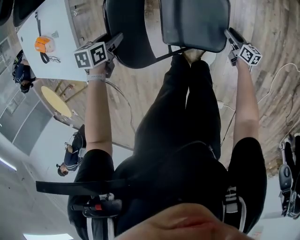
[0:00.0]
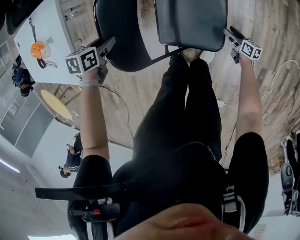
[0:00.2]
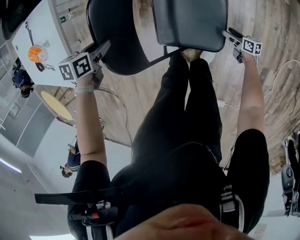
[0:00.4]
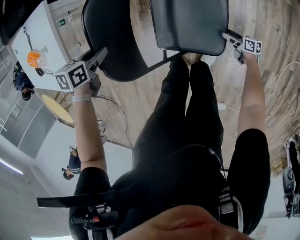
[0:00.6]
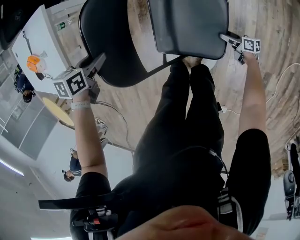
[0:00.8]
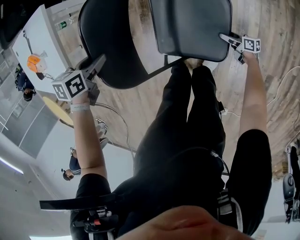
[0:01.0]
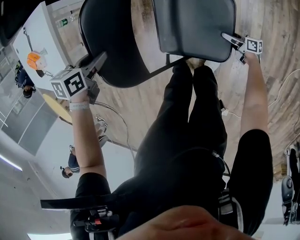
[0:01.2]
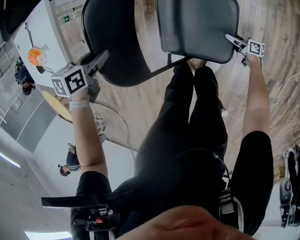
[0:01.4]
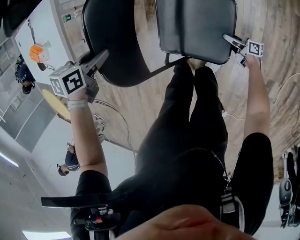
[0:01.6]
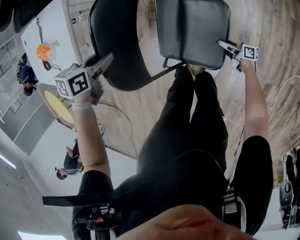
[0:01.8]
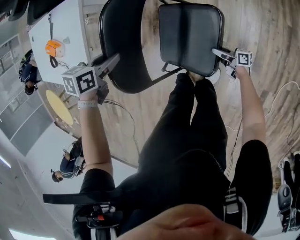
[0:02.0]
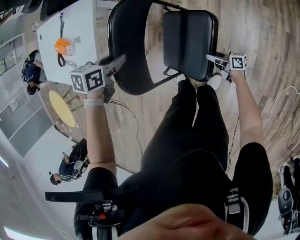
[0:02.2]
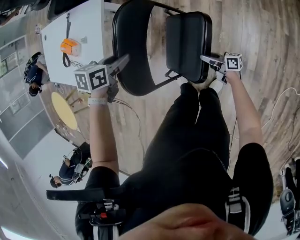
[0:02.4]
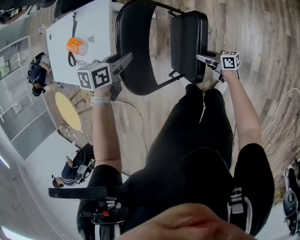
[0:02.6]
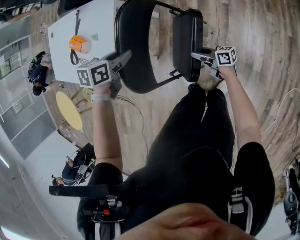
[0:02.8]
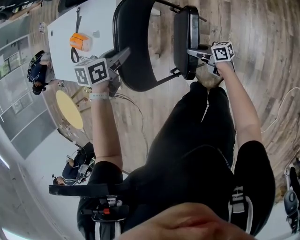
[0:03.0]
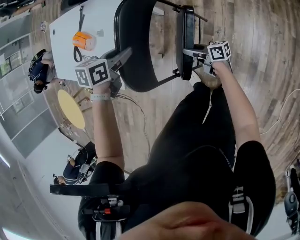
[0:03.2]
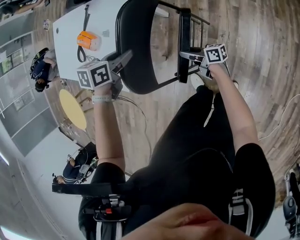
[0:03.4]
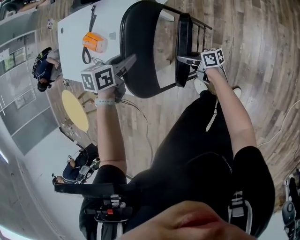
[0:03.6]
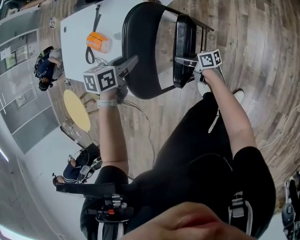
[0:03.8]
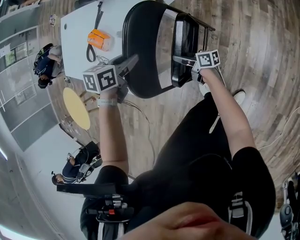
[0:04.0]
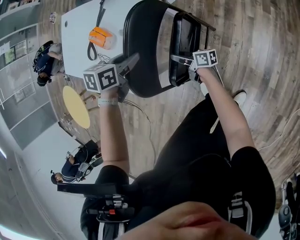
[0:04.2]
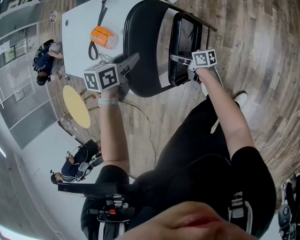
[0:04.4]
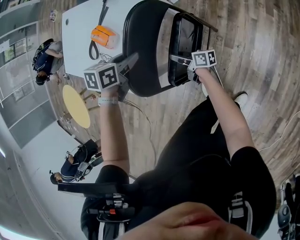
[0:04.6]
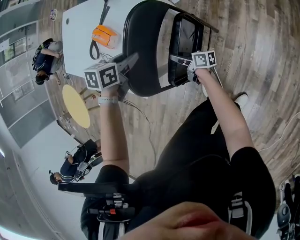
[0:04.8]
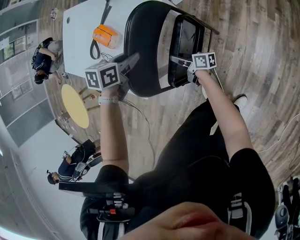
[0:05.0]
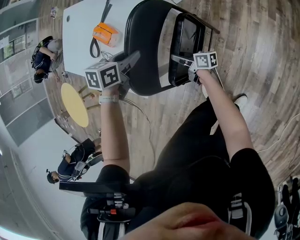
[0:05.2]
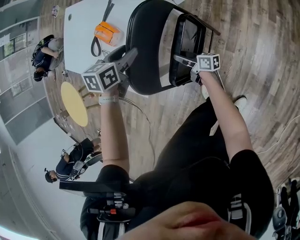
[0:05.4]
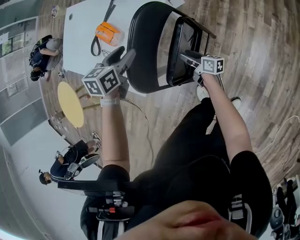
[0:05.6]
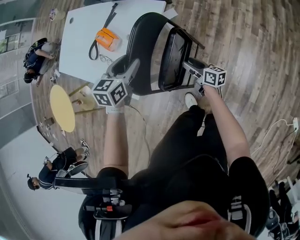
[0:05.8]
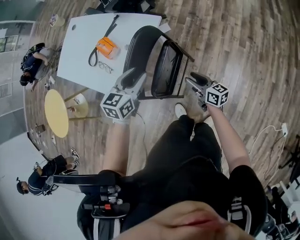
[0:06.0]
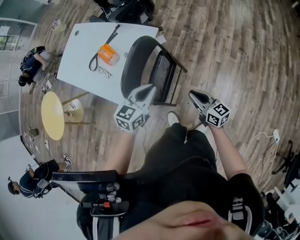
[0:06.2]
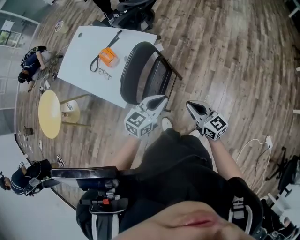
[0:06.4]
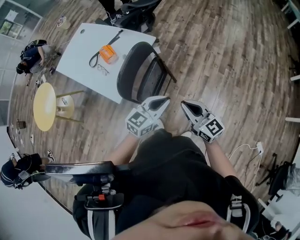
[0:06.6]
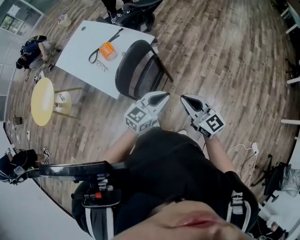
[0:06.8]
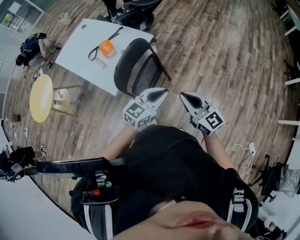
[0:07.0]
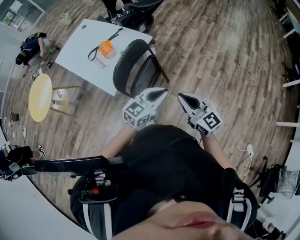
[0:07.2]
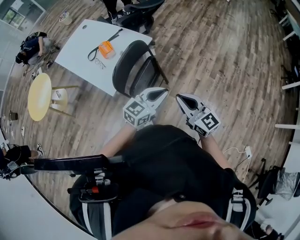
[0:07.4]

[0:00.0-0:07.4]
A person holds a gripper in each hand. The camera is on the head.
0:00.0 to 0:01.4: The right gripper travels downward by approximately 15 cm, rotates some 30 degrees, and opens its fingers.
0:01.4 to 0:03.0: The right gripper shifts by roughly 40 cm, rotates about 30 degrees, and closes up; the left gripper is displaced upward by about 15 cm.
0:03.0 to 0:04.4: The left gripper travels to the left and forward by approximately 15 cm, while the right gripper shifts approximately 25 cm to the left and forward.
0:04.4 to 0:06.0: The left gripper is displaced upward and backward by about 15 cm, and changes its angle by roughly 30 degrees. Meanwhile the right gripper moves upward, to the right and backward, approximately 25 cm, and changes its angle by some 40 degrees.
0:06.0 to 0:07.4: The left gripper shifts about 30 cm to the right, backward and upward, changes its angle by approximately 30 degrees, and closes, while the right gripper moves upward and backward, about 35 cm, changes its angle by approximately 40 degrees, and closes.

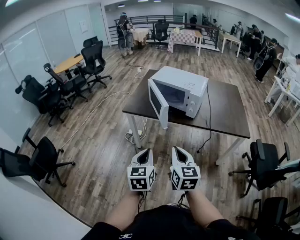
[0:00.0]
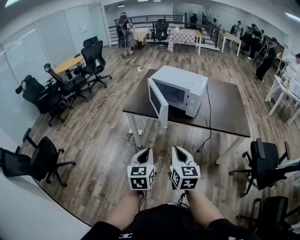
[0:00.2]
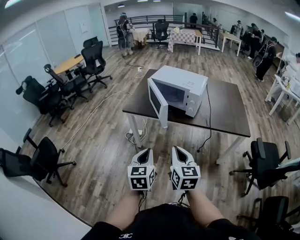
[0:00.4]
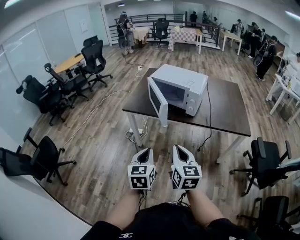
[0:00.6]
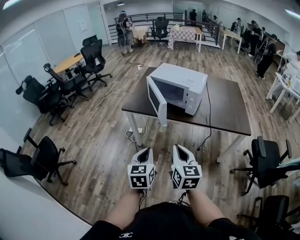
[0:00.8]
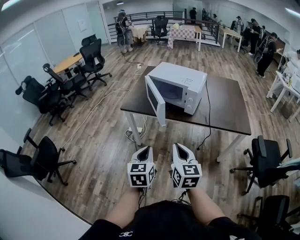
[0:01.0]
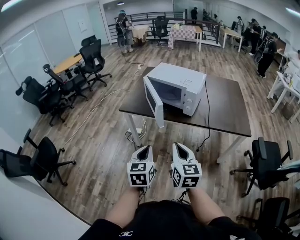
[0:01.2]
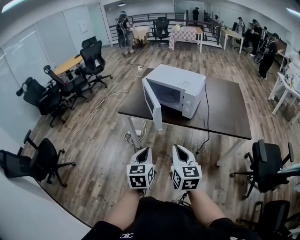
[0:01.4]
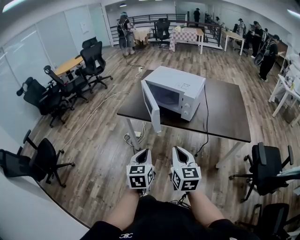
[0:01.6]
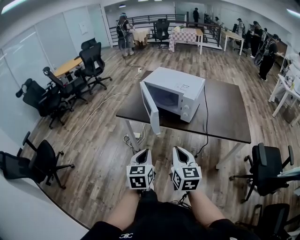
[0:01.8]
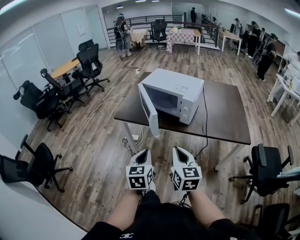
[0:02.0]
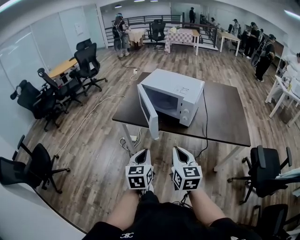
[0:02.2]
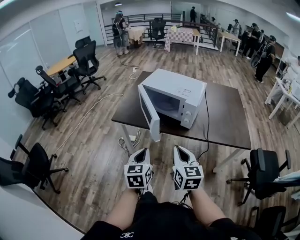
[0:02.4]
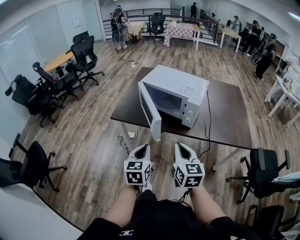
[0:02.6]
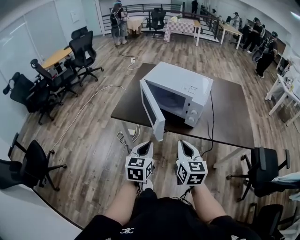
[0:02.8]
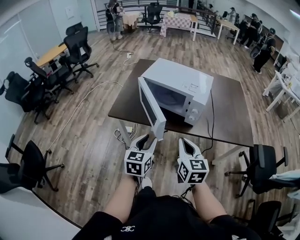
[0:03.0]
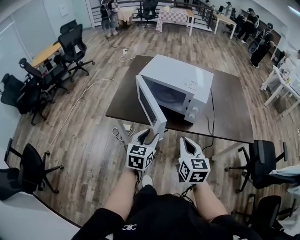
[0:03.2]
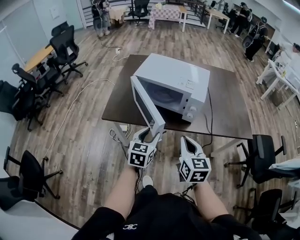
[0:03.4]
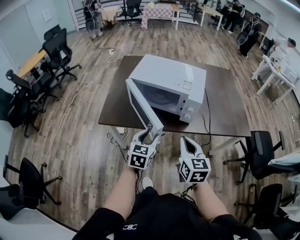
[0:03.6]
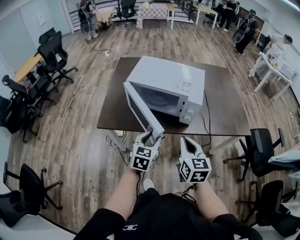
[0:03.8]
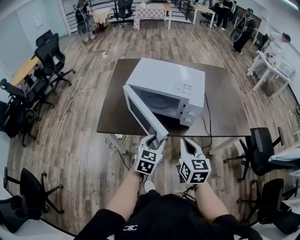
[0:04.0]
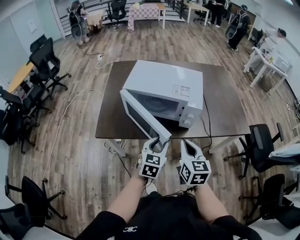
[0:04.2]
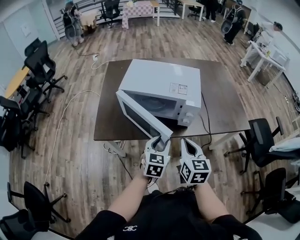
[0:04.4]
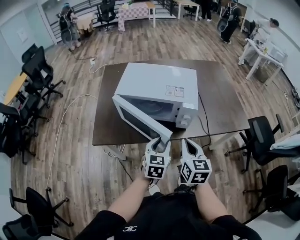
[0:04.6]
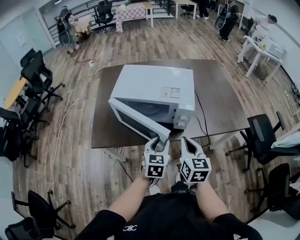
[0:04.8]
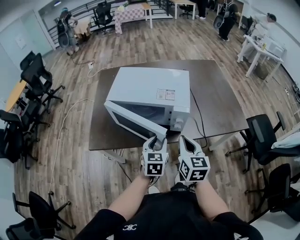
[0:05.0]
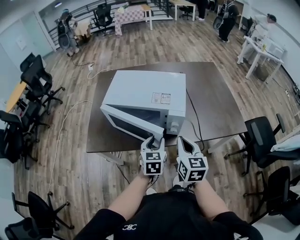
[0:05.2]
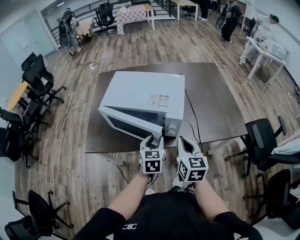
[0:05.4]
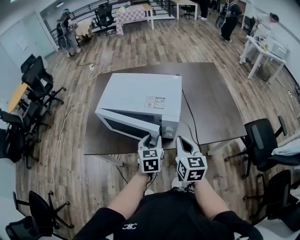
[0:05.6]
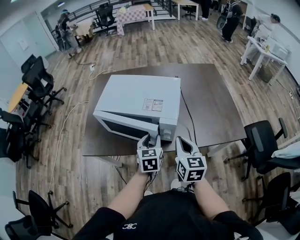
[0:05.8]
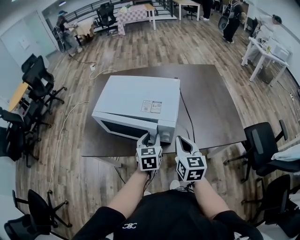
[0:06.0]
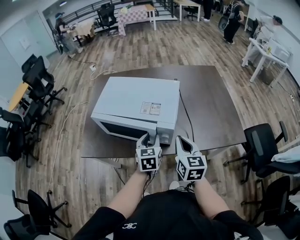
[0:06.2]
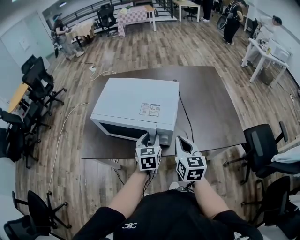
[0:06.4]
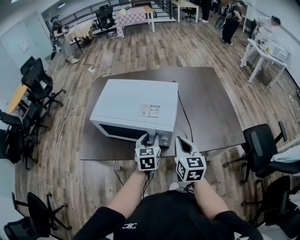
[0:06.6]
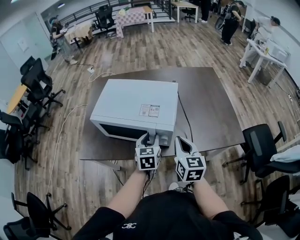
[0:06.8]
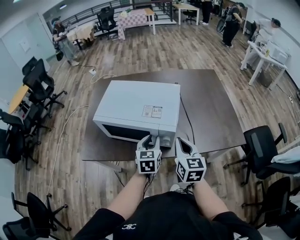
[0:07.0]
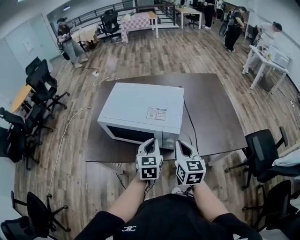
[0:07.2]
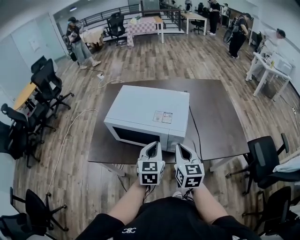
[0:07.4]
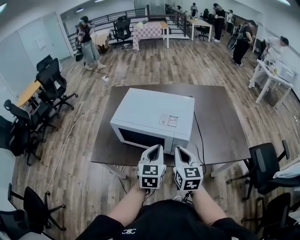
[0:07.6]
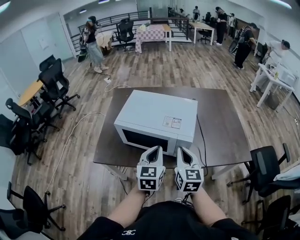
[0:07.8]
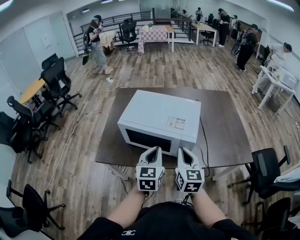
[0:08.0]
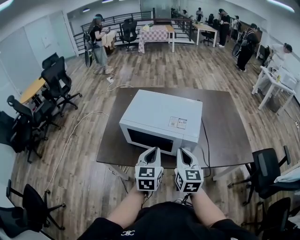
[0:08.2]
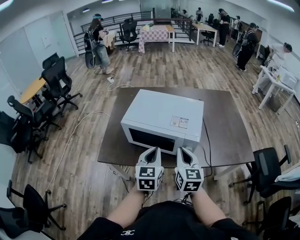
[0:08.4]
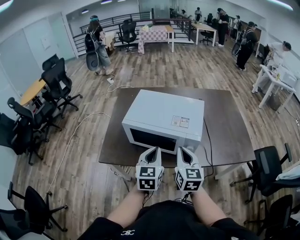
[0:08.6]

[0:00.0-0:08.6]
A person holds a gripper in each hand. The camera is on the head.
0:00.0 to 0:01.4: The grippers both shift to the right by some 5 cm.
0:01.4 to 0:02.8: Both grippers move forward, roughly 15 cm.
0:02.8 to 0:04.4: Both grippers travel together forward, approximately 15 cm. The left gripper changes its angle by approximately 30 degrees, and opens.
0:04.4 to 0:05.8: The right gripper shifts approximately 15 cm to the right and forward. The left gripper heads forward and to the right, covering approximately 15 cm.
0:05.8 to 0:07.2: The left gripper closes.
0:07.2 to 0:08.6: Both grippers travel together to the left, some 10 cm.

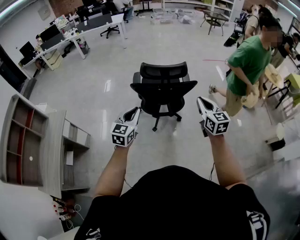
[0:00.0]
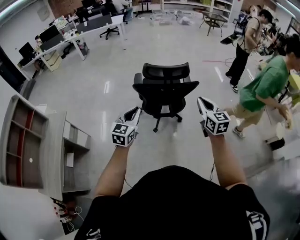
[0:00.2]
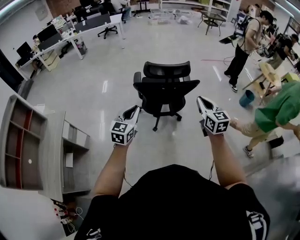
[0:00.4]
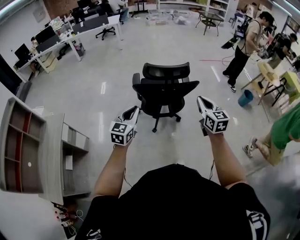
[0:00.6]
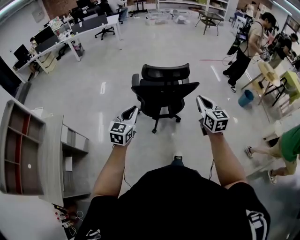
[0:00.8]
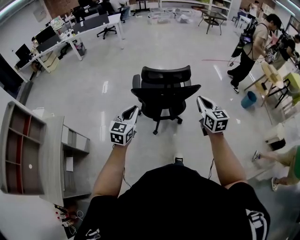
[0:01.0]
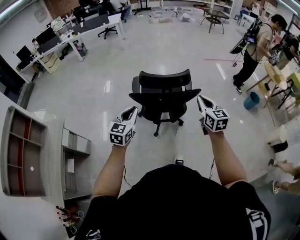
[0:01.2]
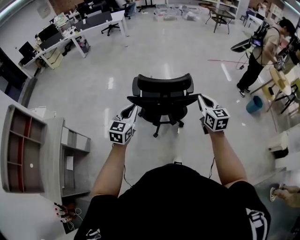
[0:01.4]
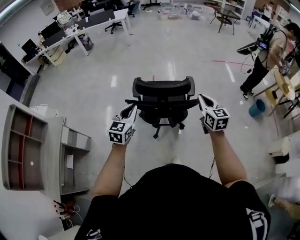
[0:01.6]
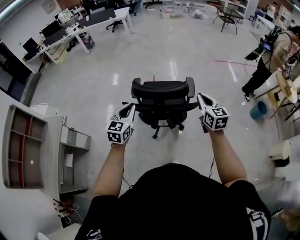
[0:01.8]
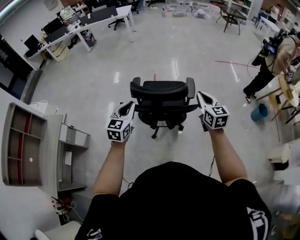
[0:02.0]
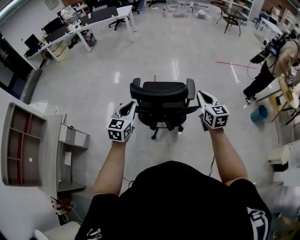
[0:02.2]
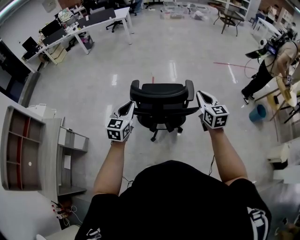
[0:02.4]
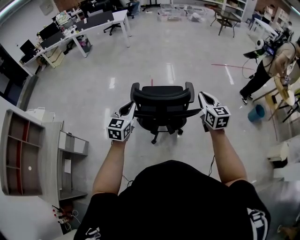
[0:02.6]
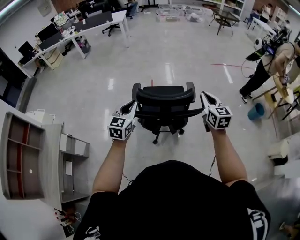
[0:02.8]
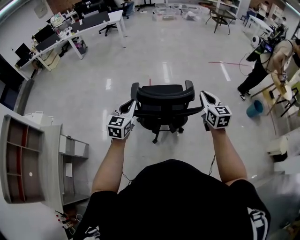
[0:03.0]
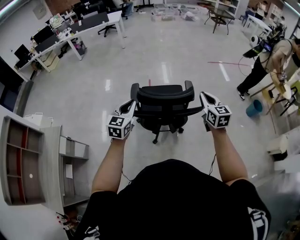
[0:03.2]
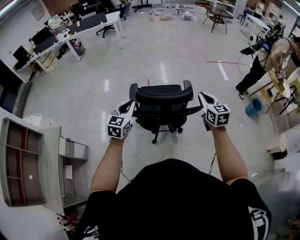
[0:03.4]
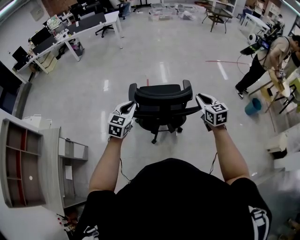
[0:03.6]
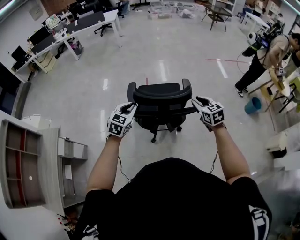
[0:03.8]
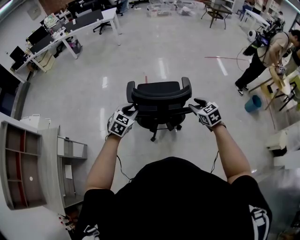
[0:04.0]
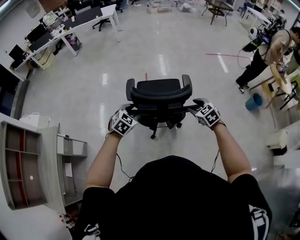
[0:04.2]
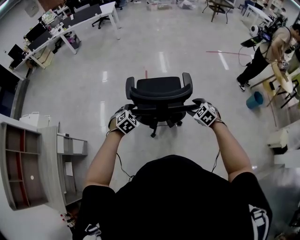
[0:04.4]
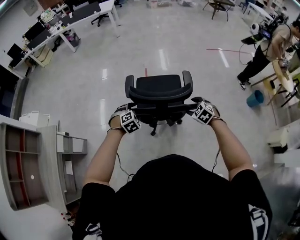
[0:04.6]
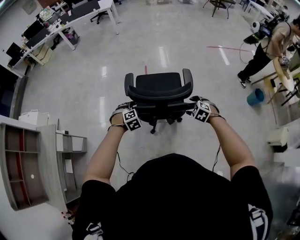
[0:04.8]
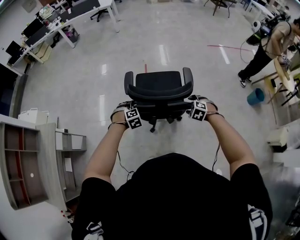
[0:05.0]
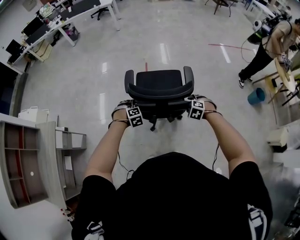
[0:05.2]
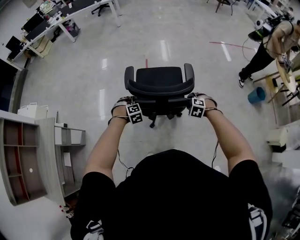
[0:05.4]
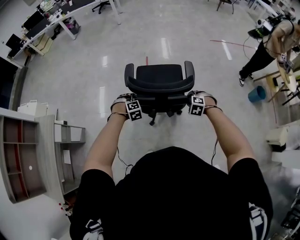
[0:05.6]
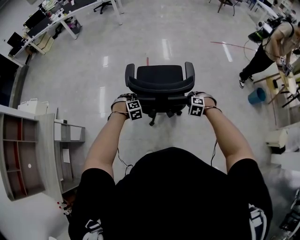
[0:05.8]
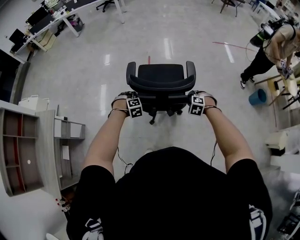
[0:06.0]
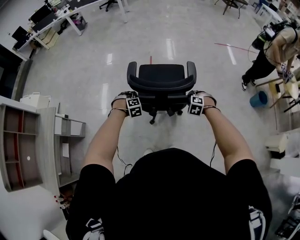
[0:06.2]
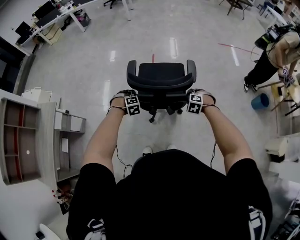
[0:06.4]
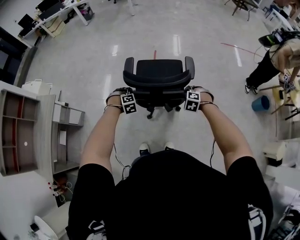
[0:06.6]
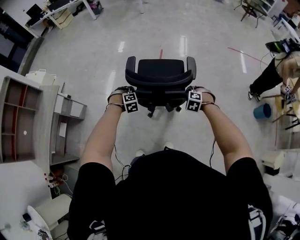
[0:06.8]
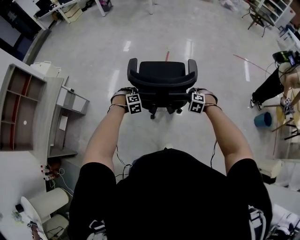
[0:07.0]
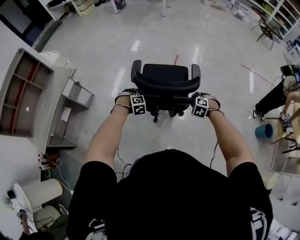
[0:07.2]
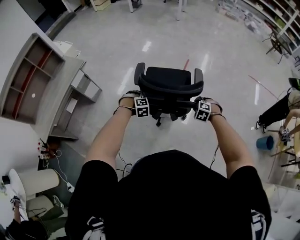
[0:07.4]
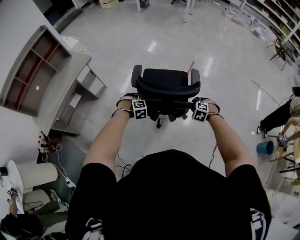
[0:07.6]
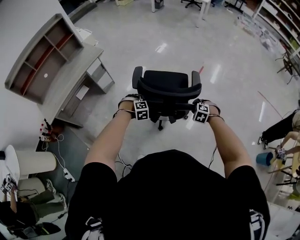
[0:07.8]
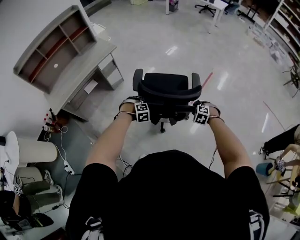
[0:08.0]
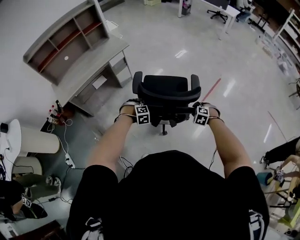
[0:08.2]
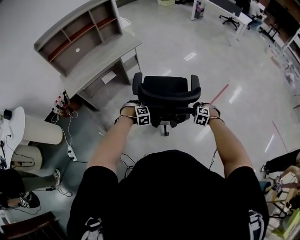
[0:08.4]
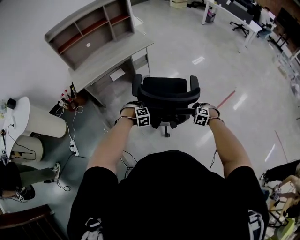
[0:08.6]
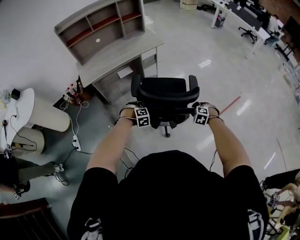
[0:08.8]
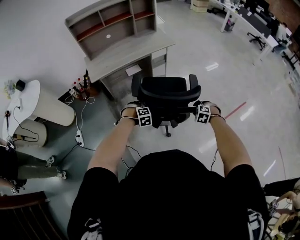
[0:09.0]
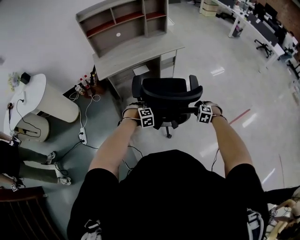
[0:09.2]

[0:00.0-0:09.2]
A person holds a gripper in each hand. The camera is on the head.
0:00.0 to 0:01.6: Both grippers travel together forward, roughly 20 cm.
0:01.6 to 0:03.0: Both grippers move forward, some 10 cm.
0:03.0 to 0:04.6: The grippers both shift downward by approximately 25 cm. The right gripper angles its fingers downward, by roughly 40 degrees, and opens up, while the left gripper tips its fingers downward by about 50 degrees, and opens.
0:04.6 to 0:06.2: The two grippers go some 5 cm downward. The right gripper swivels roughly 30 degrees, and closes up.
0:06.2 to 0:07.6: The left gripper moves to the left and backward, approximately 25 cm, and changes its angle by about 20 degrees, while the right gripper moves to the left, approximately 20 cm, and swivels some 20 degrees.
0:07.6 to 0:09.2: The two grippers travel together, roughly 50 cm. The right gripper rotates approximately 40 degrees. The left gripper turns by approximately 40 degrees.
